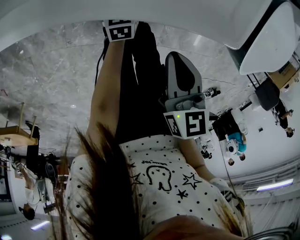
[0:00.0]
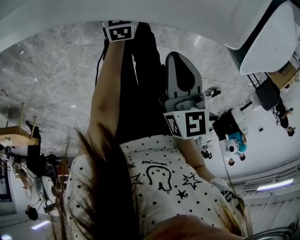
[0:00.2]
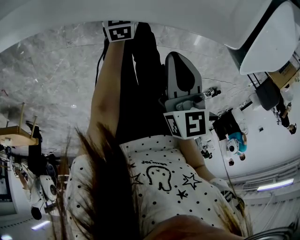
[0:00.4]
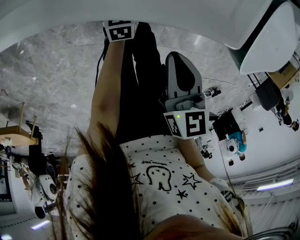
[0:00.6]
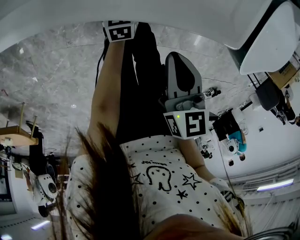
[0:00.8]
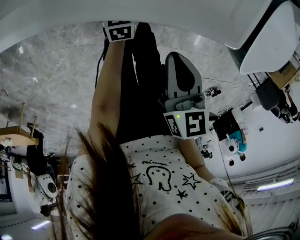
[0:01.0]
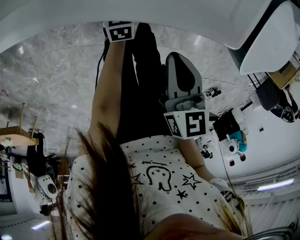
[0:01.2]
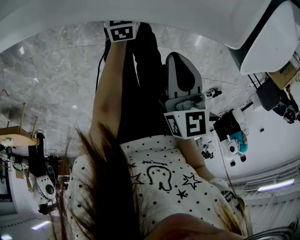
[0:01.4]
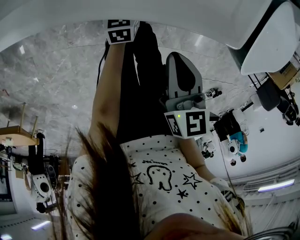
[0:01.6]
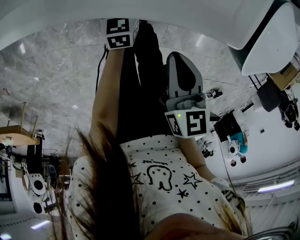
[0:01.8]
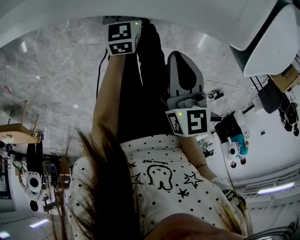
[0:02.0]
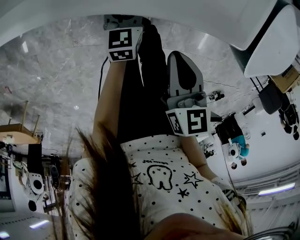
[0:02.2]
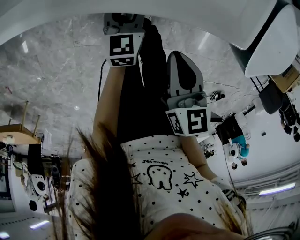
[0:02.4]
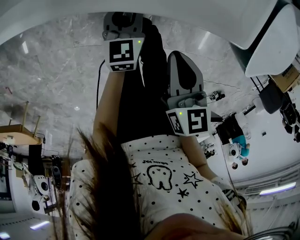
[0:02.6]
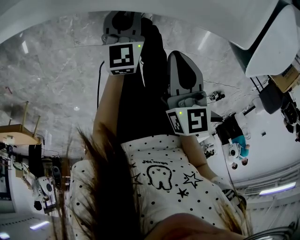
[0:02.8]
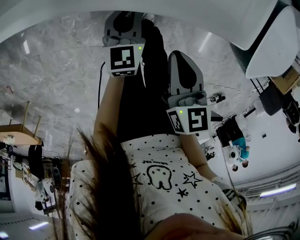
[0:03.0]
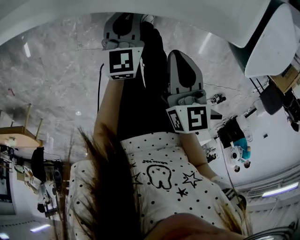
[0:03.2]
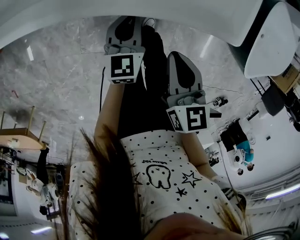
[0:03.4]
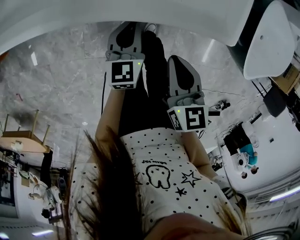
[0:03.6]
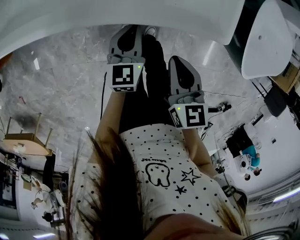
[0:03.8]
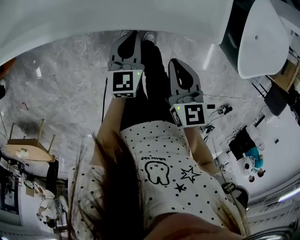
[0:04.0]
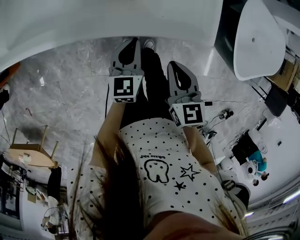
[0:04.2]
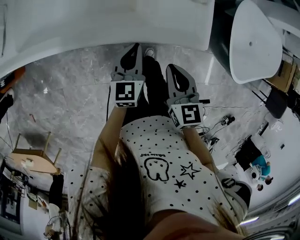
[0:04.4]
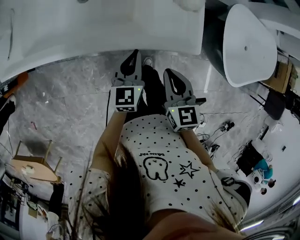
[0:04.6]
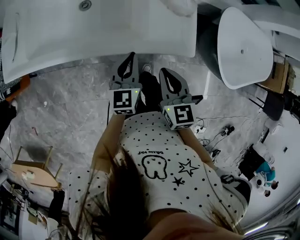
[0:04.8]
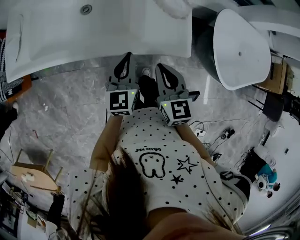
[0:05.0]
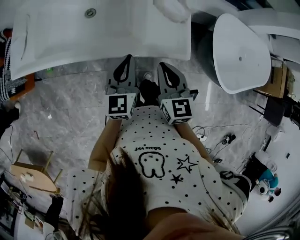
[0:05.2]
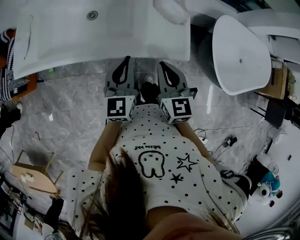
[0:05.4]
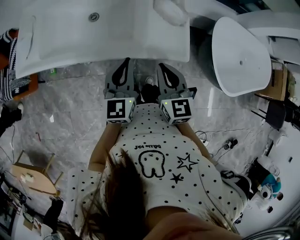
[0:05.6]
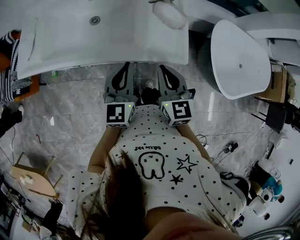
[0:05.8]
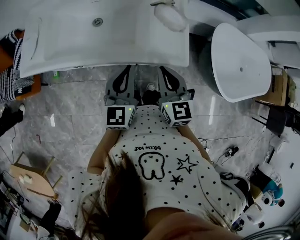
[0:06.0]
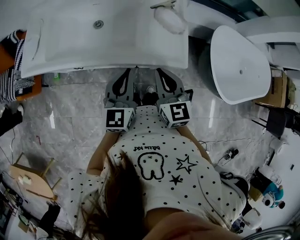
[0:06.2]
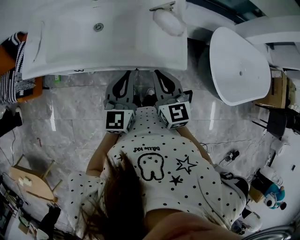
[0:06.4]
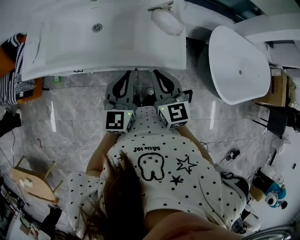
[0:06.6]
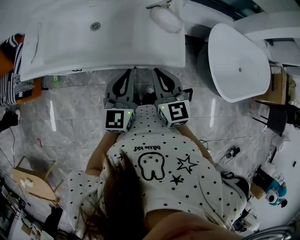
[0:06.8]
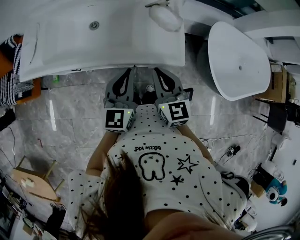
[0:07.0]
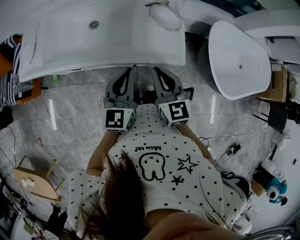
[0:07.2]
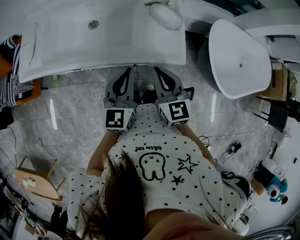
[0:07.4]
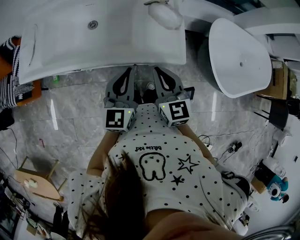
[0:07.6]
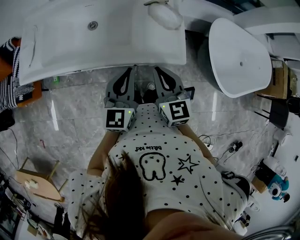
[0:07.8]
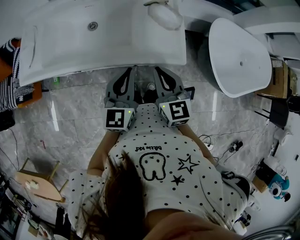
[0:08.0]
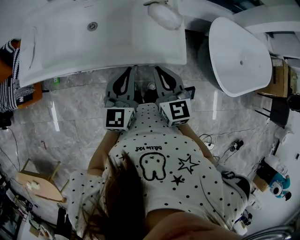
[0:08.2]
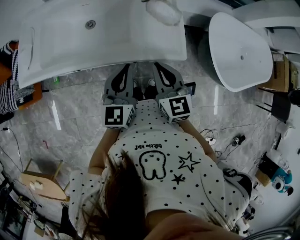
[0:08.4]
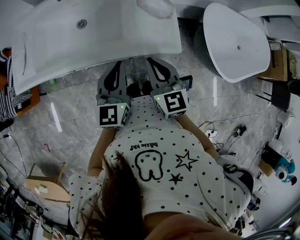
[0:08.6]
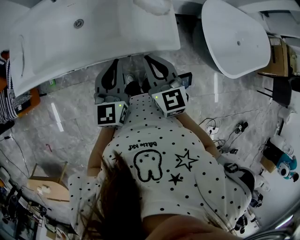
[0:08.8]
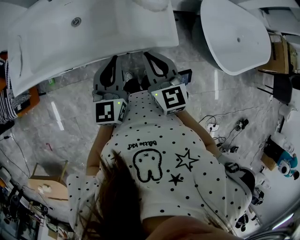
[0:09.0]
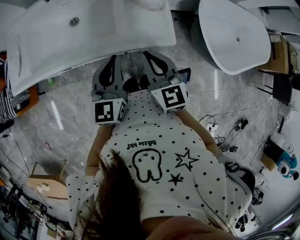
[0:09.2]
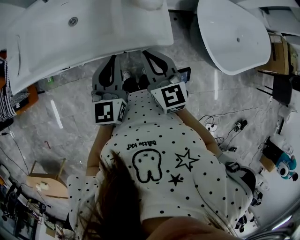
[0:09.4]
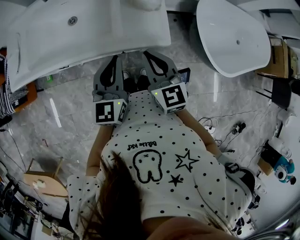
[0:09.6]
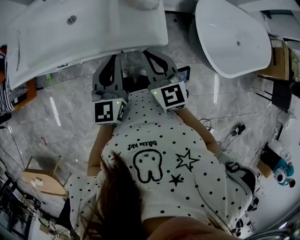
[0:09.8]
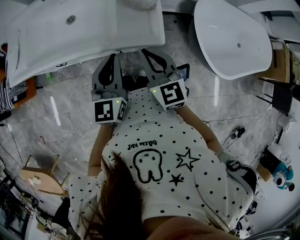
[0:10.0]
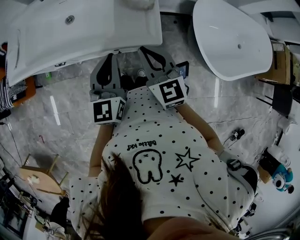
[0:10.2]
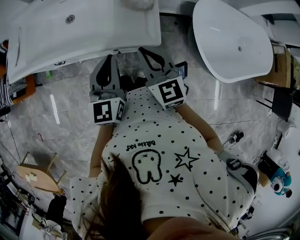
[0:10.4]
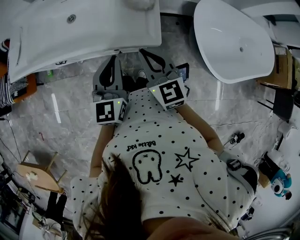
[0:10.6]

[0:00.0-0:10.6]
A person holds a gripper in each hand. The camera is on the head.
0:00.0 to 0:01.6: The two grippers keep their place.
0:01.6 to 0:03.0: The left gripper travels upward by some 10 cm, and closes up.
0:03.0 to 0:04.6: The left gripper goes approximately 20 cm upward; the right gripper heads upward, covering about 15 cm.
0:04.6 to 0:06.0: The right gripper shifts roughly 10 cm upward. Meanwhile the left gripper heads upward, covering roughly 15 cm.
0:06.0 to 0:07.6: There are only small adjustments of the grippers.
0:07.6 to 0:09.0: The two grippers keep their place.
0:09.0 to 0:10.6: Both grippers move to the right, approximately 10 cm.

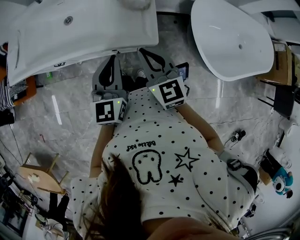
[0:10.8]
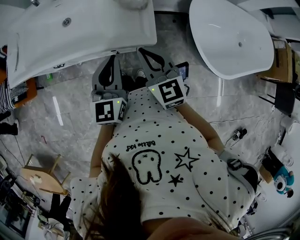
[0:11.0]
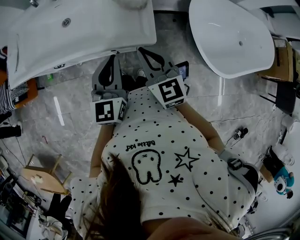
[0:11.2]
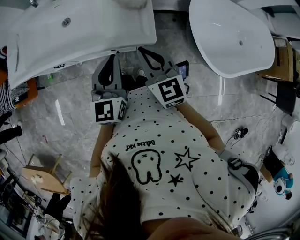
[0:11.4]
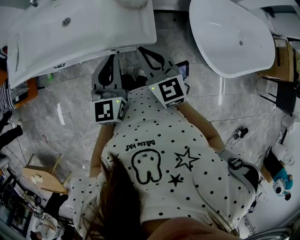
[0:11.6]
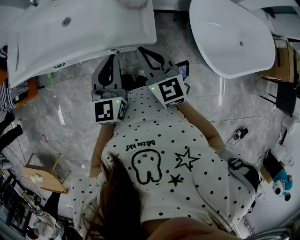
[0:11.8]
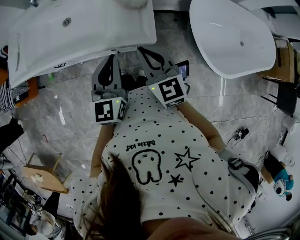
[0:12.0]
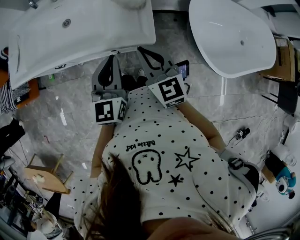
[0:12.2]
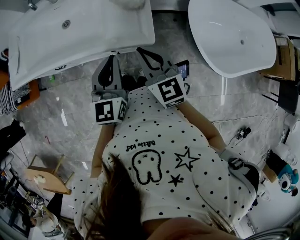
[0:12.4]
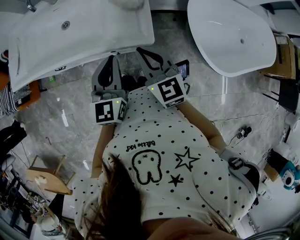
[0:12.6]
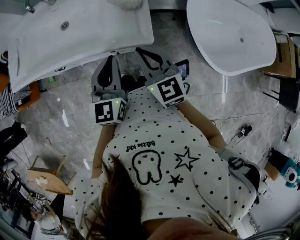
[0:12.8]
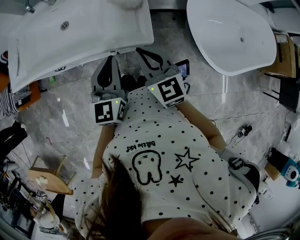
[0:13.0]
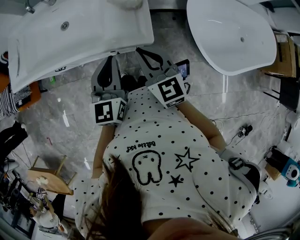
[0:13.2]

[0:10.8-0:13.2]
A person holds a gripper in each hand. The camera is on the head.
0:10.8 to 0:12.0: Neither gripper changes place.
0:12.0 to 0:13.2: The two grippers keep their place.

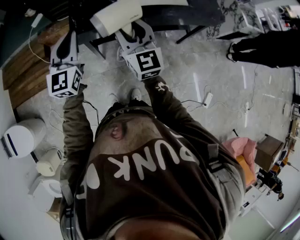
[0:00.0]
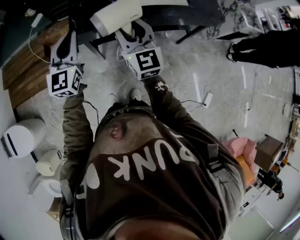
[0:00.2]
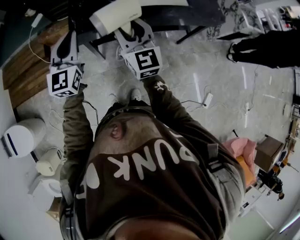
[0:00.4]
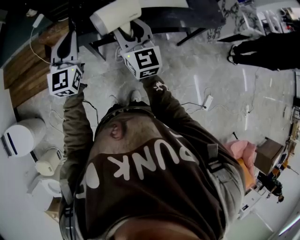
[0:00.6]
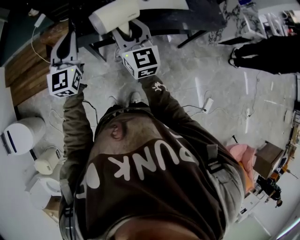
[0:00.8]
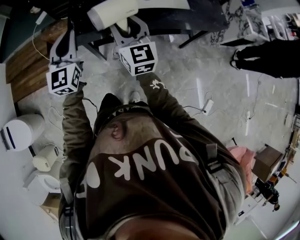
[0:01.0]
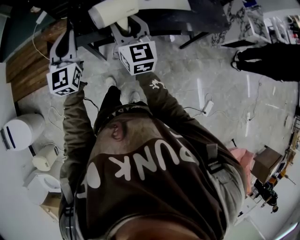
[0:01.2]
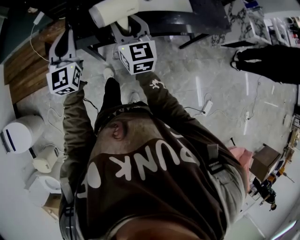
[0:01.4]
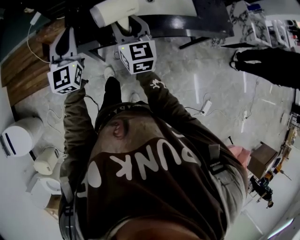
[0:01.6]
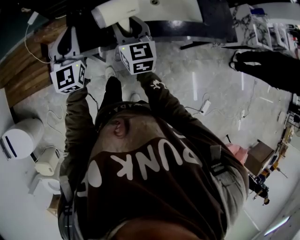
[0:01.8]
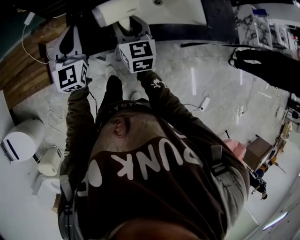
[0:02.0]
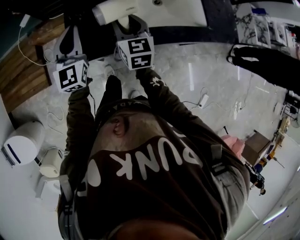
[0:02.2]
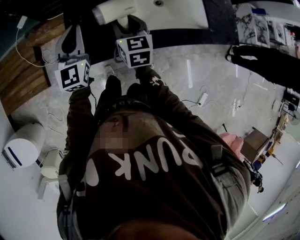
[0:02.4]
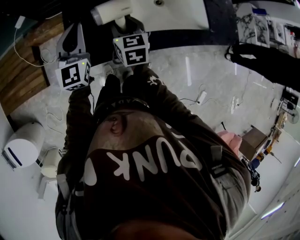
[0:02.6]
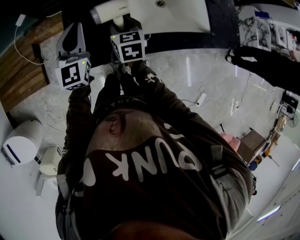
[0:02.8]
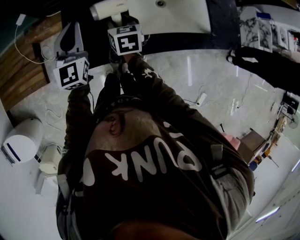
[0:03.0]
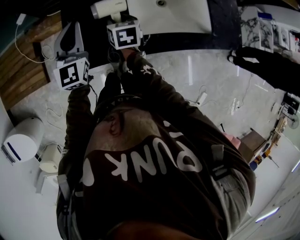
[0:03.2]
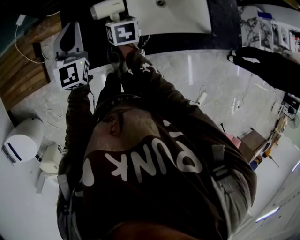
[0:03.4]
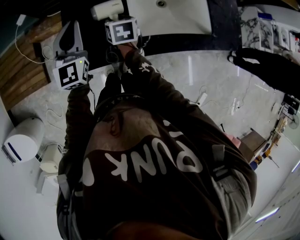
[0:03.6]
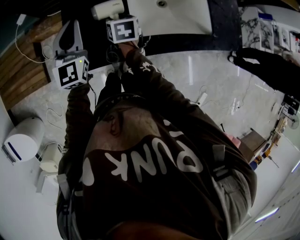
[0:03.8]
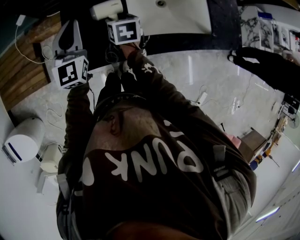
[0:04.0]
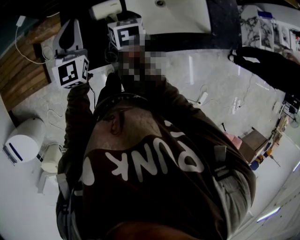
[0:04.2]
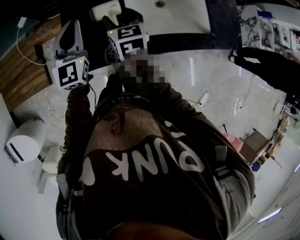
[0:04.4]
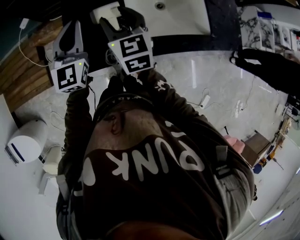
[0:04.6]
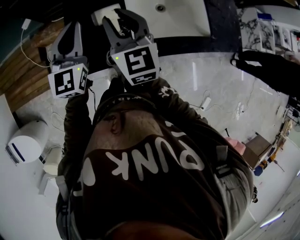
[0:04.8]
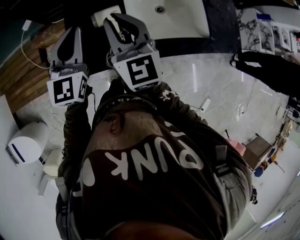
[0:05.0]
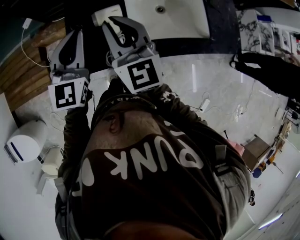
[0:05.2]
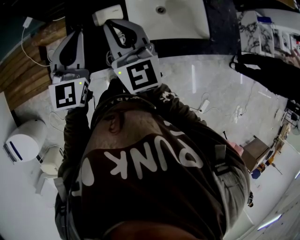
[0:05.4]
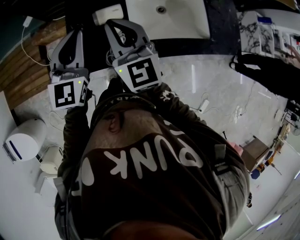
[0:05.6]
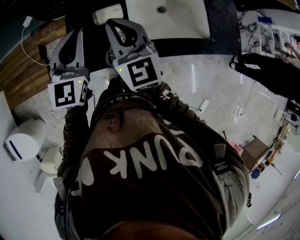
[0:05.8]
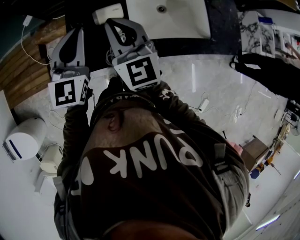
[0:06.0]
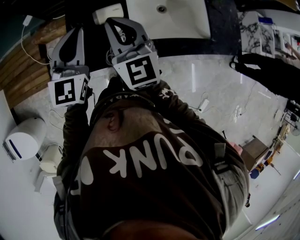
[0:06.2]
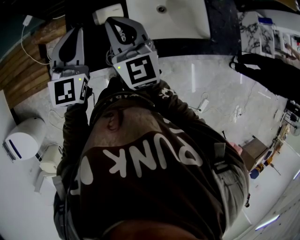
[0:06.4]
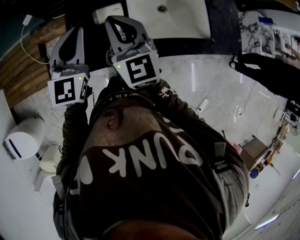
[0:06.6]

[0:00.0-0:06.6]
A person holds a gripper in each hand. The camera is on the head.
0:00.0 to 0:01.6: The right gripper travels forward and downward by roughly 15 cm, while the left gripper travels forward by roughly 10 cm.
0:01.6 to 0:03.2: The left gripper is displaced forward by about 20 cm; the right gripper travels forward and downward by roughly 25 cm, and angles its fingers downward, by some 40 degrees.
0:03.2 to 0:05.0: The right gripper moves upward, about 25 cm, points its fingers approximately 40 degrees further upward, and closes up; the left gripper shifts approximately 10 cm upward.
0:05.0 to 0:06.6: There are only small adjustments of the grippers.

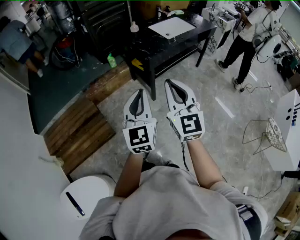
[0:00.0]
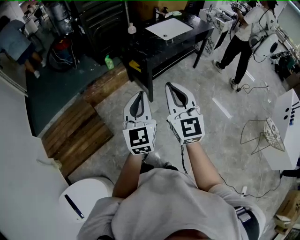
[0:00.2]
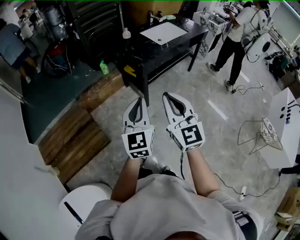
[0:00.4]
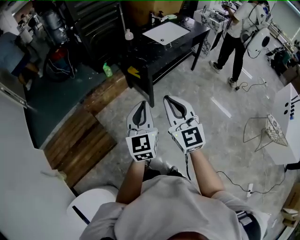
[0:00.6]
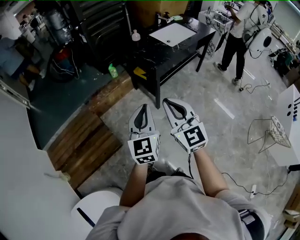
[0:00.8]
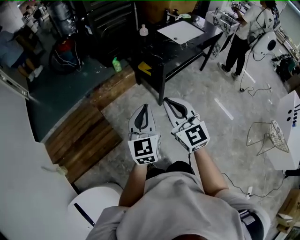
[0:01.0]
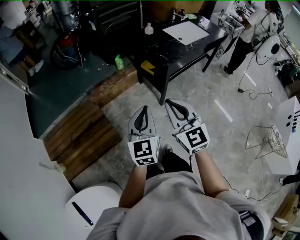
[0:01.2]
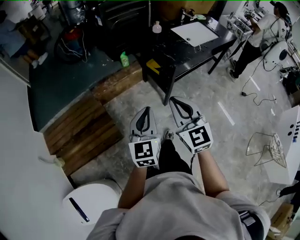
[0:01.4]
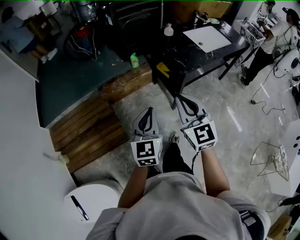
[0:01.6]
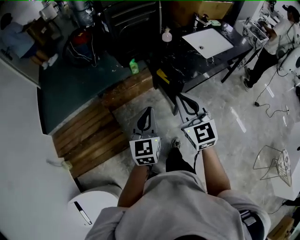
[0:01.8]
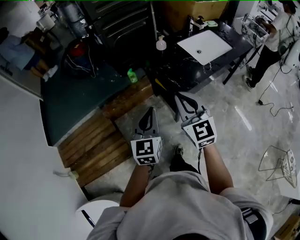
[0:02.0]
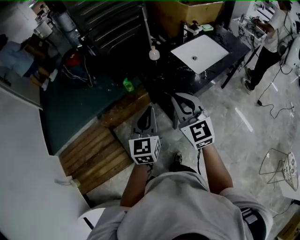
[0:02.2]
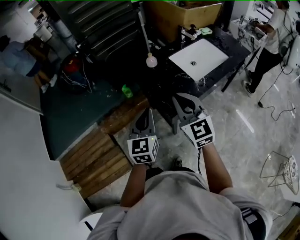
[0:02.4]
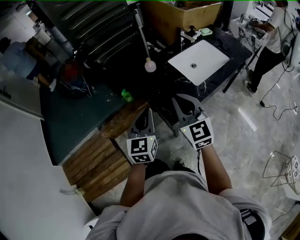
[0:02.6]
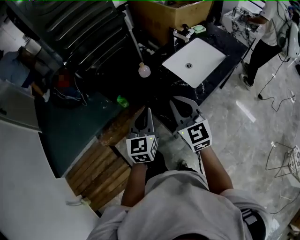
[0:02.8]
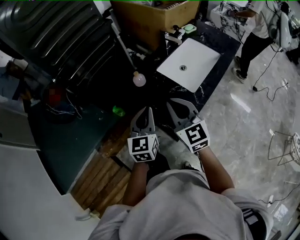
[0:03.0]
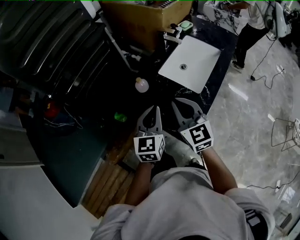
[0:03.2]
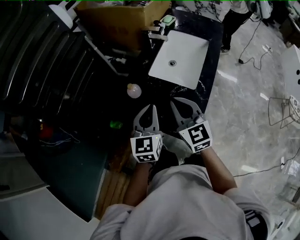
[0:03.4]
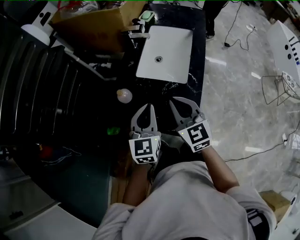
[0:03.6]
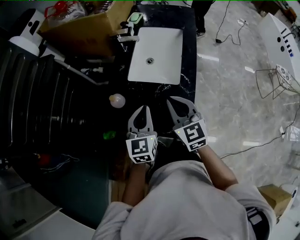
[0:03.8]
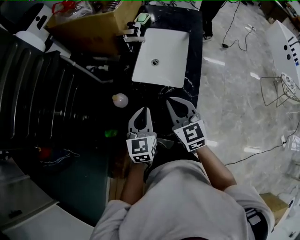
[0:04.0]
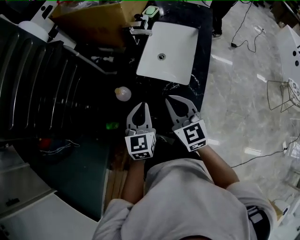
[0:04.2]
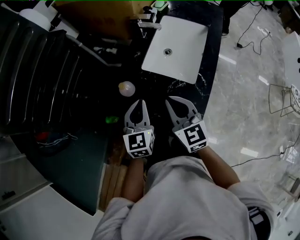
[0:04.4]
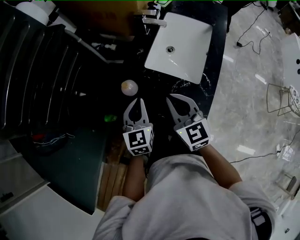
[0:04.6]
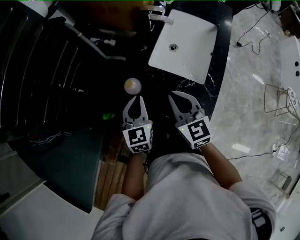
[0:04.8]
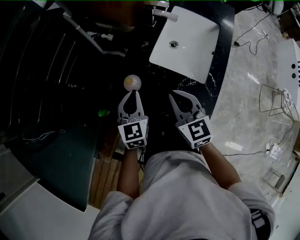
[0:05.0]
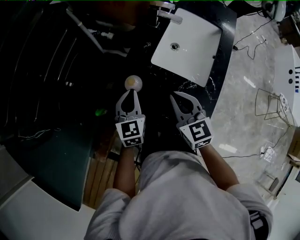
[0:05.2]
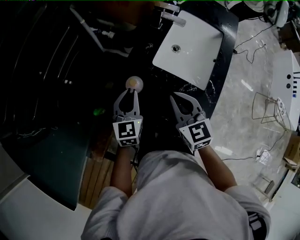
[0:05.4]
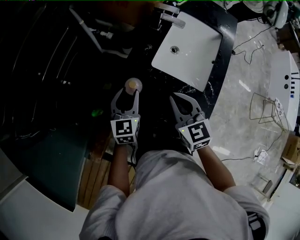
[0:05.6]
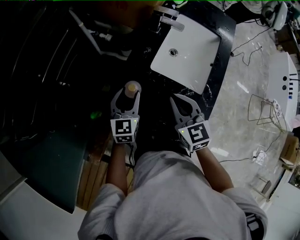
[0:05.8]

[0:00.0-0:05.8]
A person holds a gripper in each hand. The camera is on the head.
0:00.0 to 0:01.4: The two grippers go approximately 20 cm to the left, forward and downward.
0:01.4 to 0:02.8: The two grippers travel together, forward and to the right, some 50 cm.
0:02.8 to 0:04.4: The left gripper moves roughly 25 cm, and rotates roughly 30 degrees; the right gripper ends up approximately 20 cm from where it was, and swivels roughly 30 degrees.
0:04.4 to 0:05.8: The right gripper travels forward by roughly 5 cm, while the left gripper is displaced forward, downward and to the left by roughly 15 cm, and opens up.
